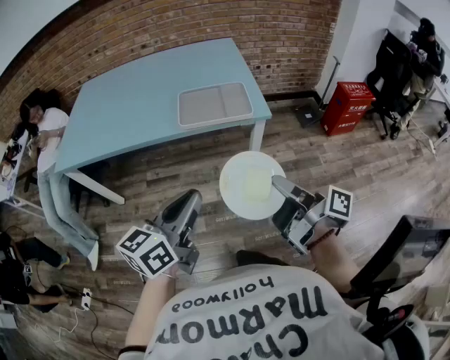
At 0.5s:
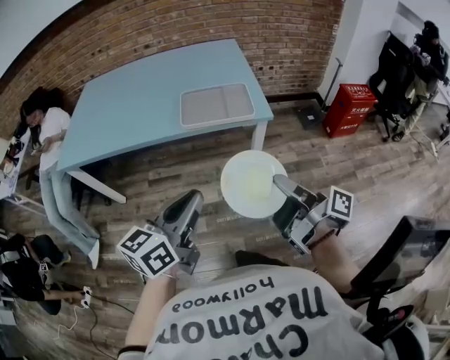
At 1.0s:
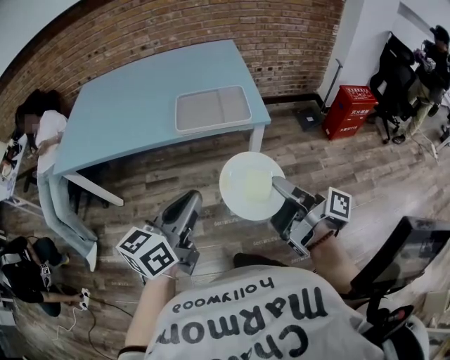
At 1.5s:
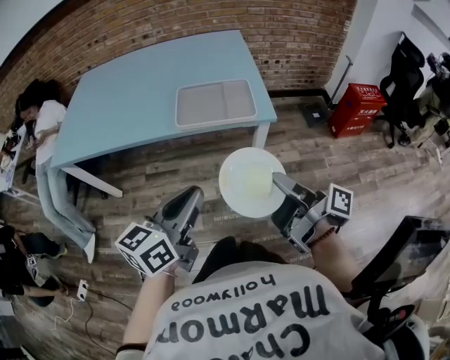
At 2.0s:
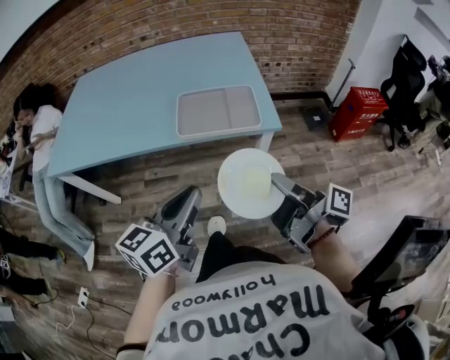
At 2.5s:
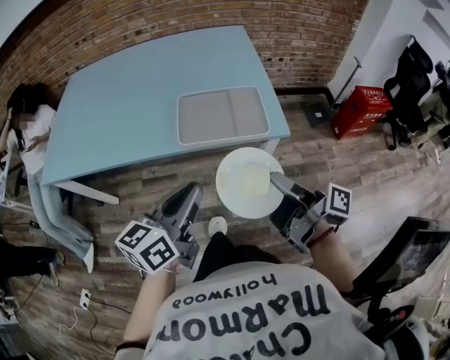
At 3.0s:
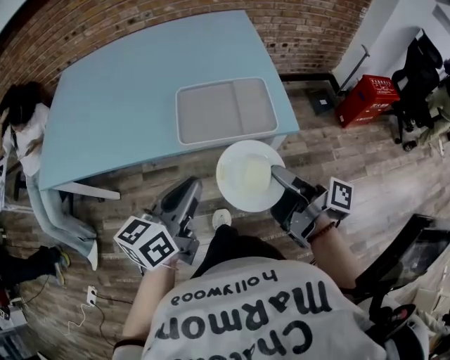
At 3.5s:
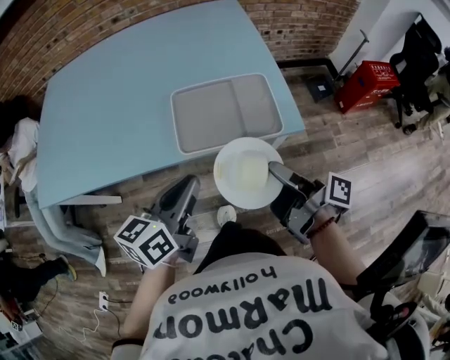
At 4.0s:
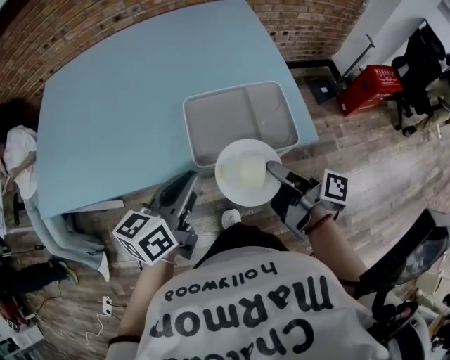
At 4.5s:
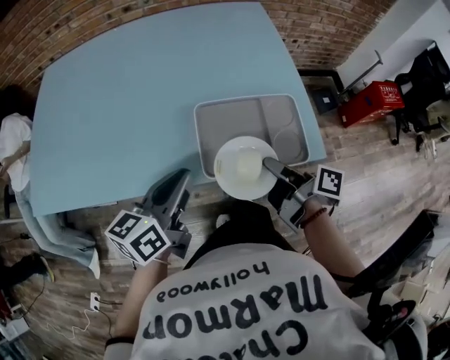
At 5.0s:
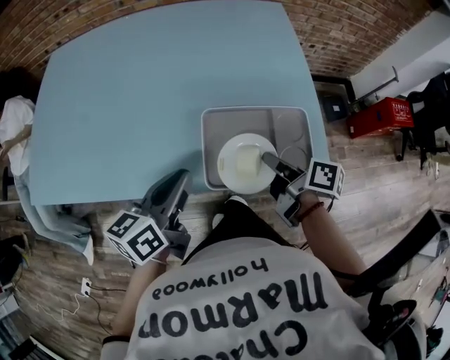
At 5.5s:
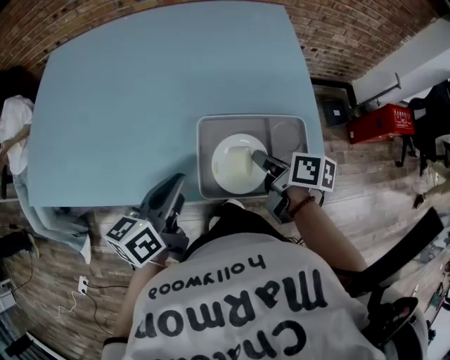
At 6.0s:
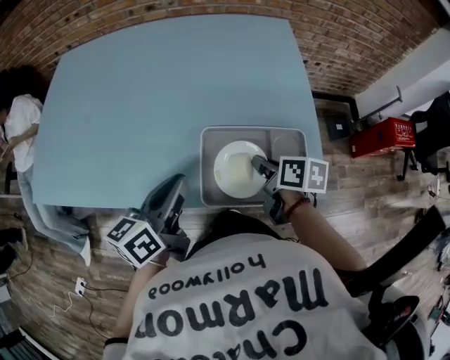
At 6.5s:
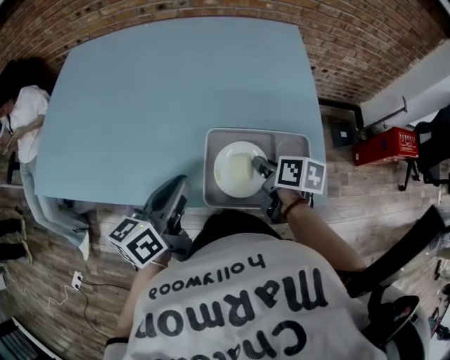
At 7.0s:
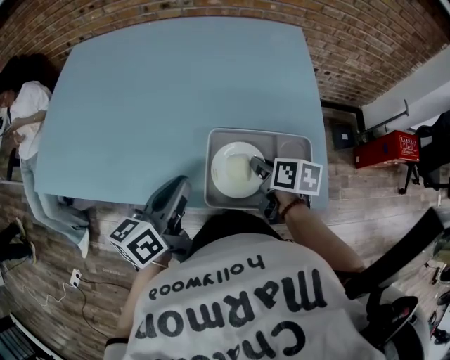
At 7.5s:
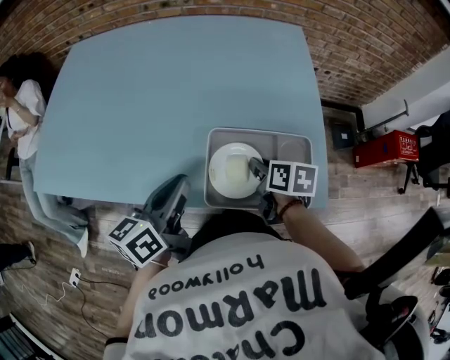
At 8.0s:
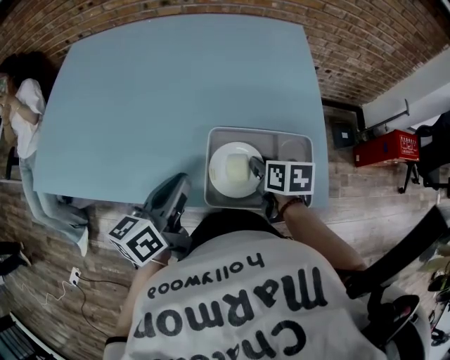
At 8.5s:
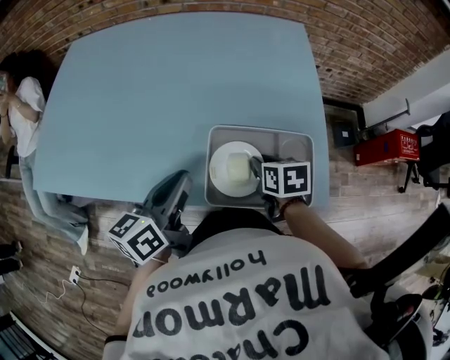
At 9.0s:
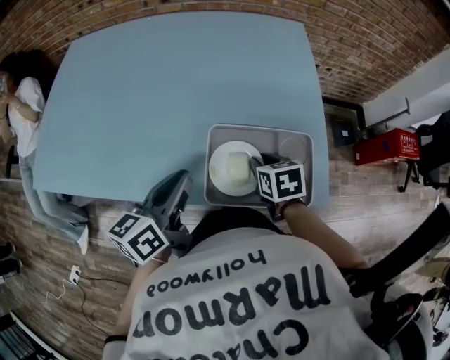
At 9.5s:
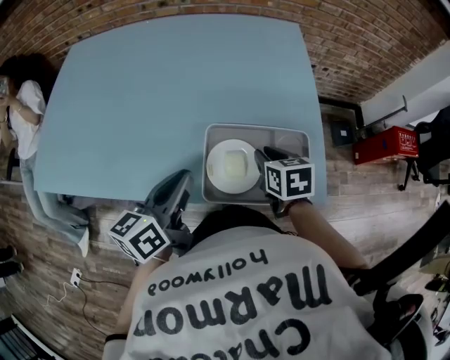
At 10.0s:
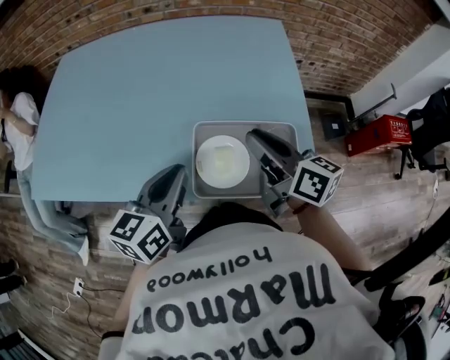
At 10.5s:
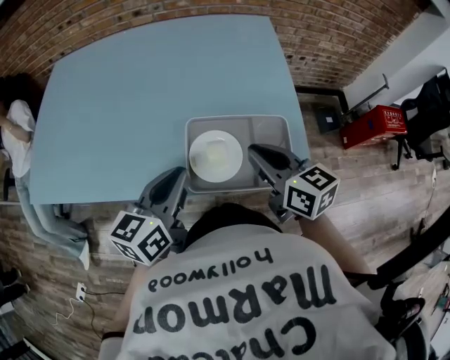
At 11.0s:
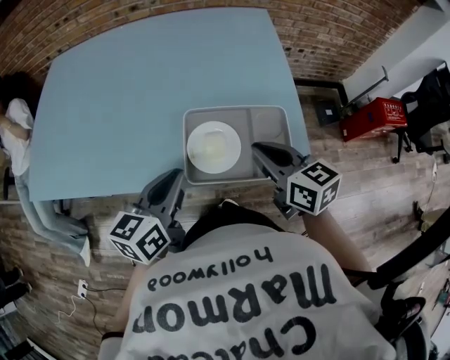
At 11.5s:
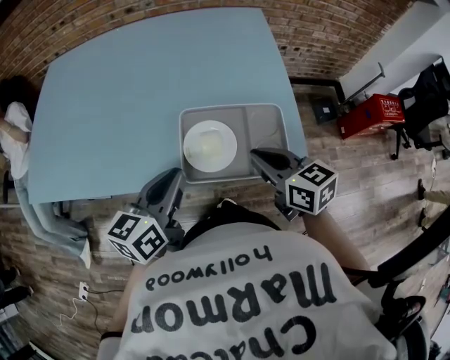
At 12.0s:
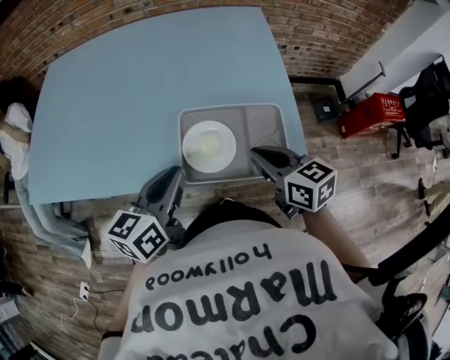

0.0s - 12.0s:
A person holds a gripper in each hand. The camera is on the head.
0.0s - 2.0s: Both grippers move forward, about 10 cm.
2.0s - 4.0s: The right gripper goes roughly 25 cm forward and to the left. Meanwhile the left gripper travels forward by about 25 cm.
4.0s - 6.0s: The left gripper goes about 10 cm forward. The right gripper shifts approximately 15 cm forward, and tilts its fingers approximately 30 degrees downward.
6.0s - 8.0s: The grippers make only small movements.
8.0s - 10.0s: The right gripper is displaced upward by approximately 15 cm, and angles its fingers upward, by about 40 degrees.
10.0s - 12.0s: The right gripper goes about 10 cm backward and downward, and turns by about 30 degrees.

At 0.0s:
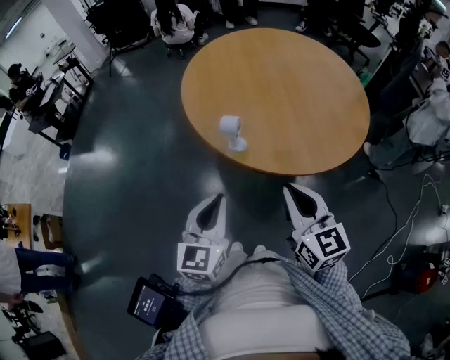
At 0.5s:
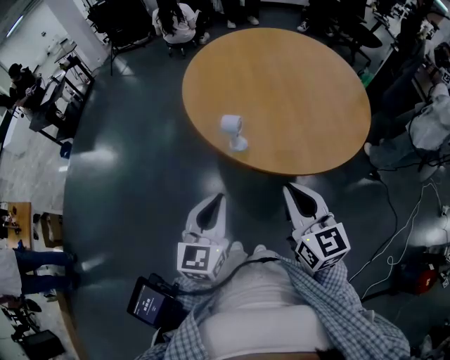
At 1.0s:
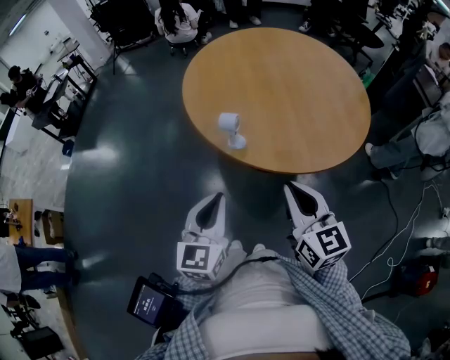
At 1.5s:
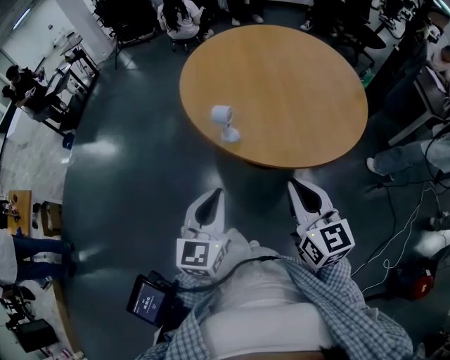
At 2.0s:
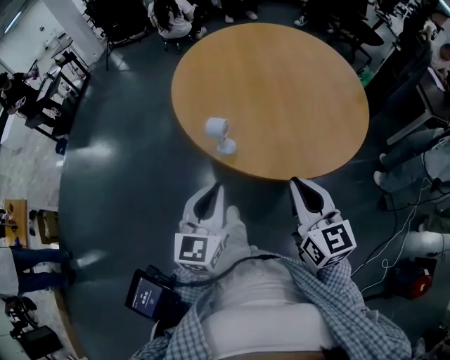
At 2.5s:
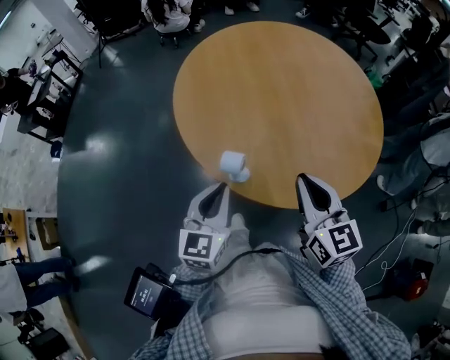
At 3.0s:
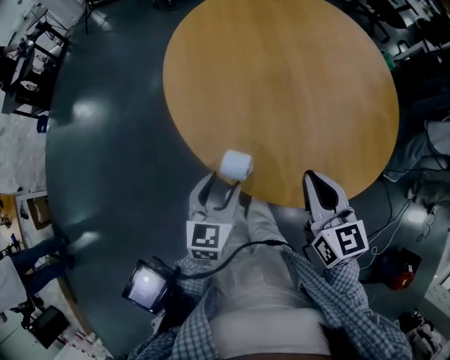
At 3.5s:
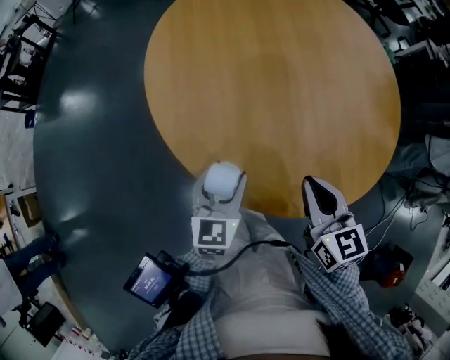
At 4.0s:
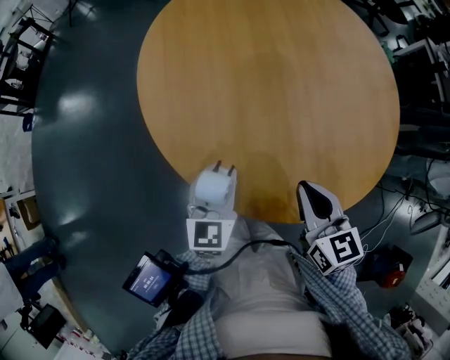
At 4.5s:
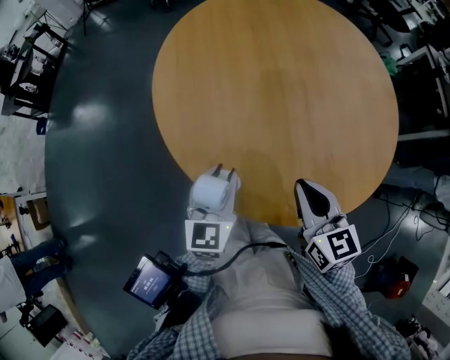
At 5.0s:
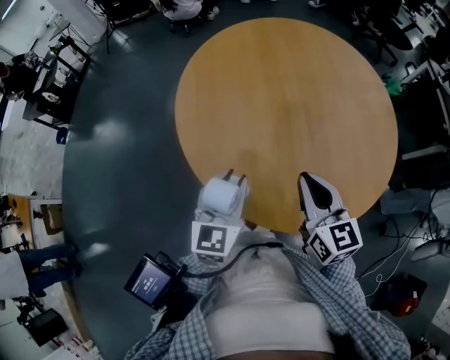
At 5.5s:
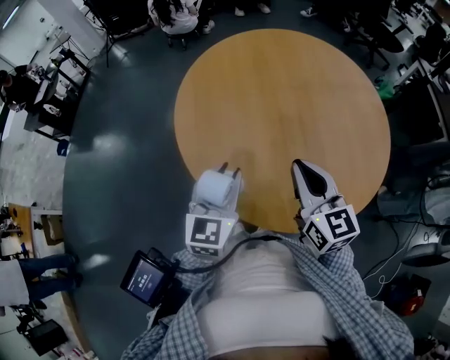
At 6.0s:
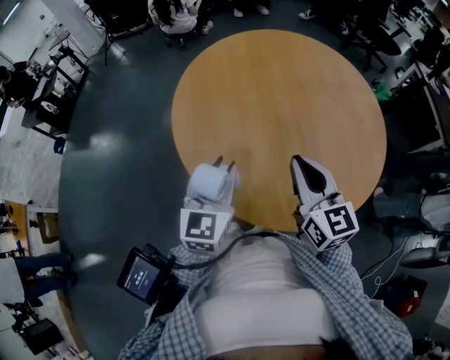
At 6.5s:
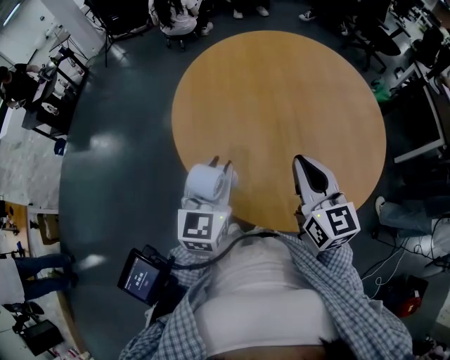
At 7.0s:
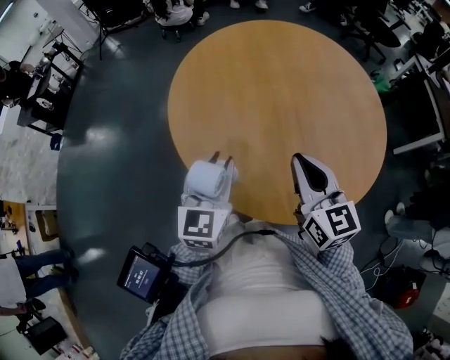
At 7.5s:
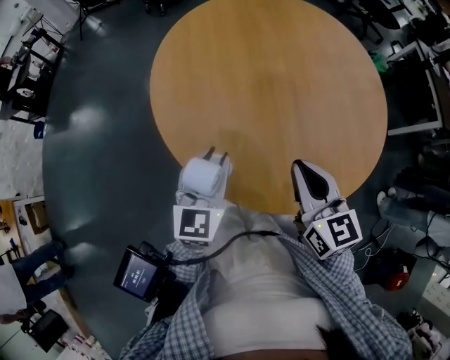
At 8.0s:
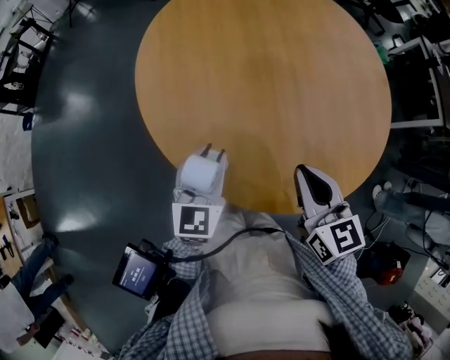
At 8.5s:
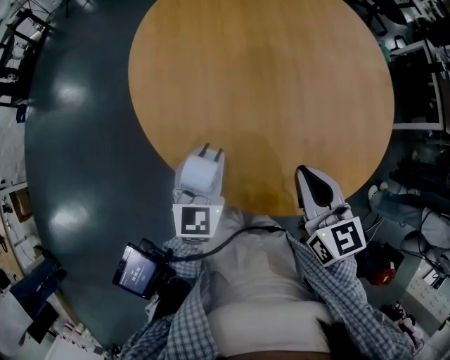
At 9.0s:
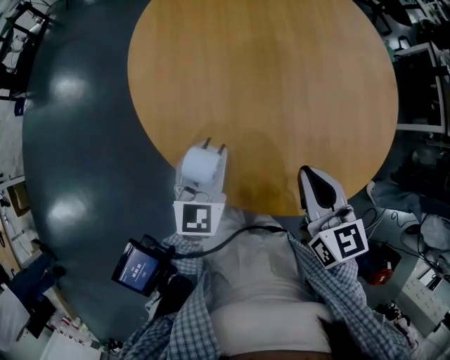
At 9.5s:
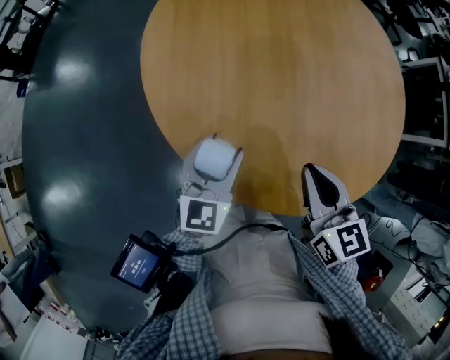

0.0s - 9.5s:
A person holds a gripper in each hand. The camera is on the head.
0.0s - 2.0s: The left gripper moves roughly 5 cm. The right gripper heads to the right, covering approximately 5 cm.
2.0s - 4.0s: The two grippers go roughly 20 cm forward and downward. The left gripper opens up. The right gripper rotates approximately 20 degrees.
4.0s - 5.5s: The left gripper is displaced upward by approximately 15 cm. Meanwhile the right gripper is displaced upward and forward by approximately 10 cm.
5.5s - 7.5s: The grippers move only a little.
7.5s - 9.5s: The left gripper shifts roughly 10 cm downward, and opens its fingers. The right gripper shifts approximately 5 cm downward.

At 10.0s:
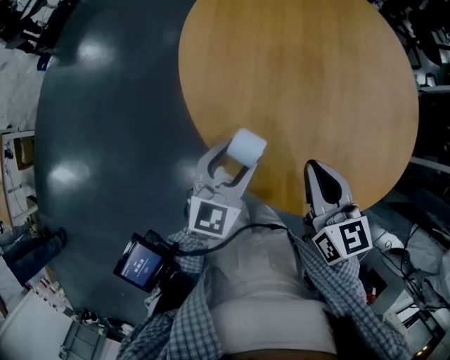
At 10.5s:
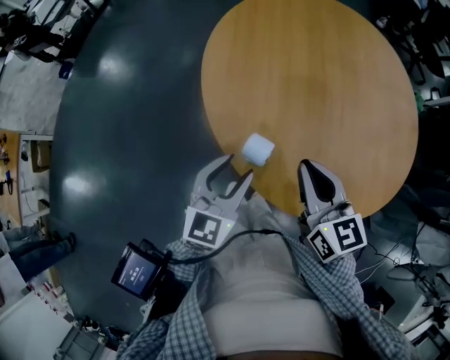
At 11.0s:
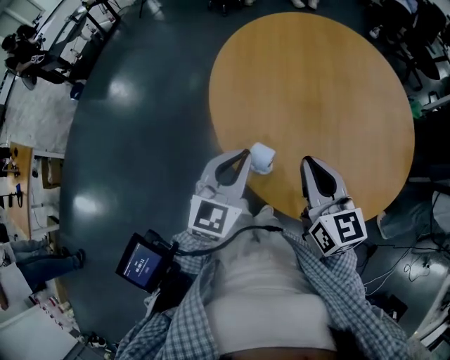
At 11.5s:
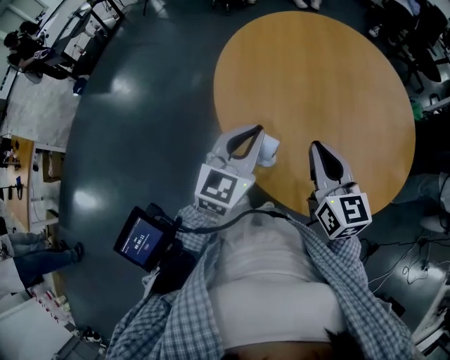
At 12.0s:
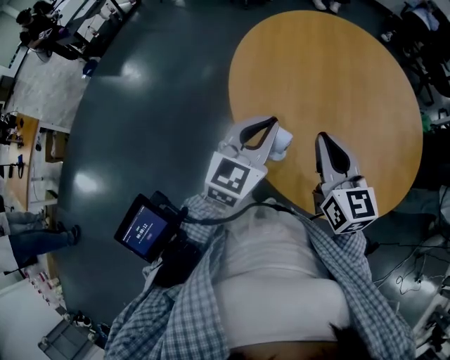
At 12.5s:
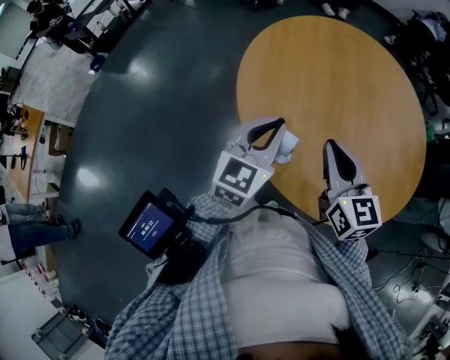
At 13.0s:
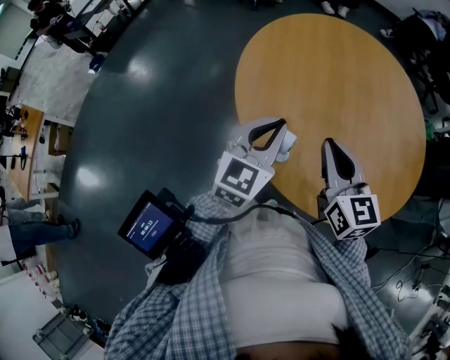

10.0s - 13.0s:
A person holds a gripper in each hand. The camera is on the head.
10.0s - 11.5s: The left gripper travels upward by approximately 10 cm, and closes up, while the right gripper moves upward, some 5 cm.
11.5s - 13.0s: There are only small adjustments of the grippers.

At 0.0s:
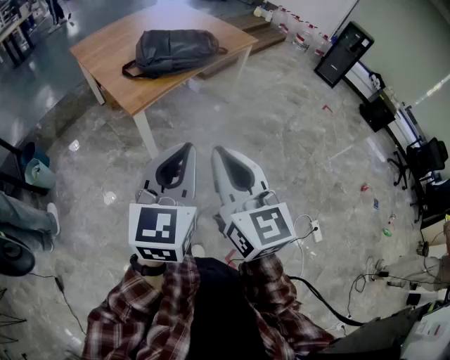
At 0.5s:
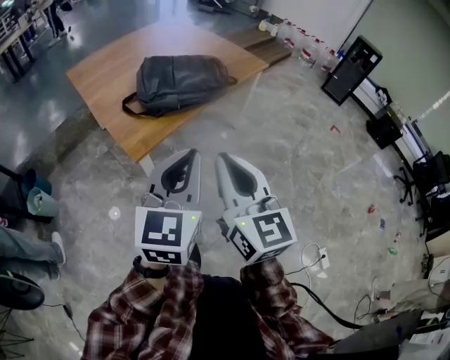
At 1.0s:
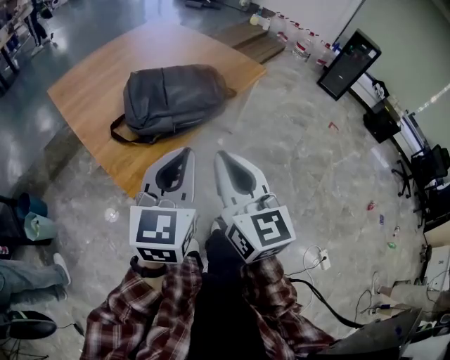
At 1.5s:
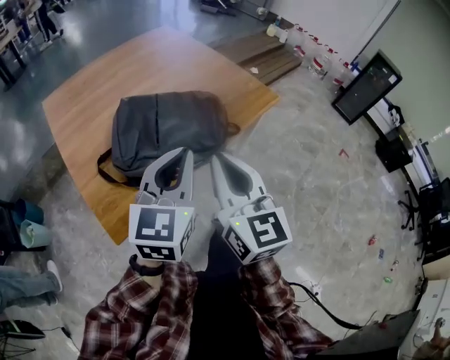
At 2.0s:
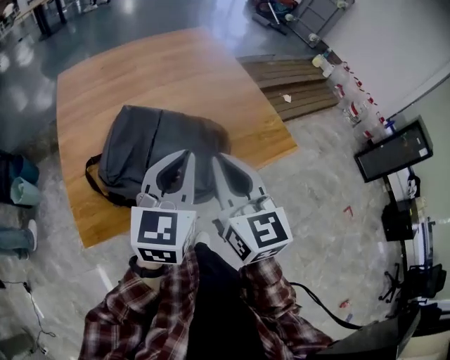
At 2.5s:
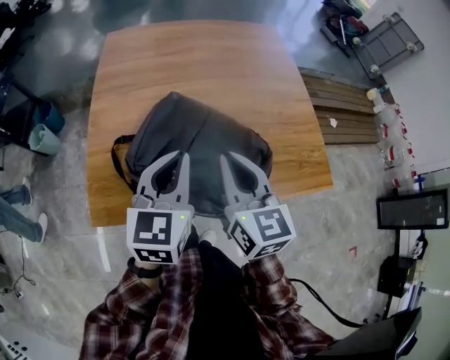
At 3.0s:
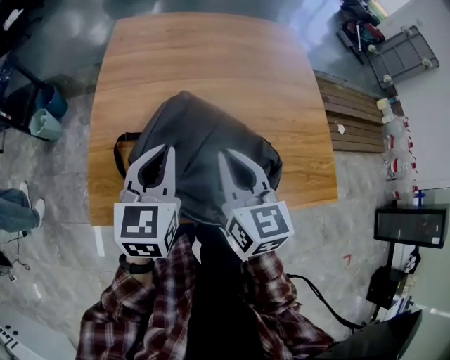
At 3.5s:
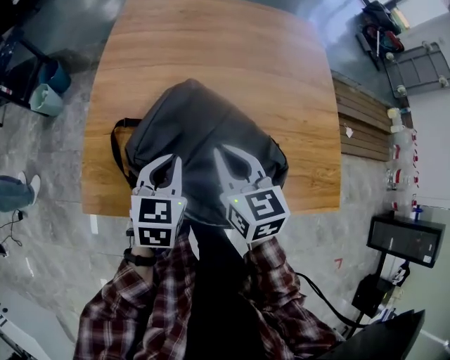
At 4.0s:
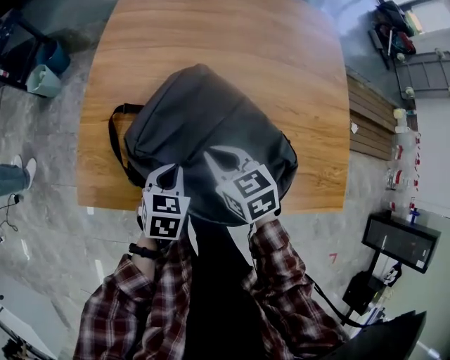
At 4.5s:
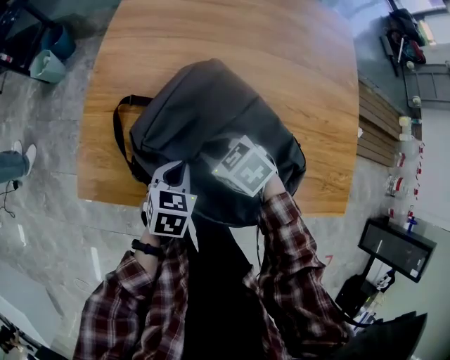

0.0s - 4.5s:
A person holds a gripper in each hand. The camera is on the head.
0.0s - 2.0s: The pair of grippers is taken forward, approximately 70 cm. The right gripper turns by roughly 20 degrees.
2.0s - 4.5s: The grippers both shift downward by roughly 30 cm. The right gripper tips its fingers downward by some 50 degrees; the left gripper angles its fingers downward, by approximately 40 degrees.
